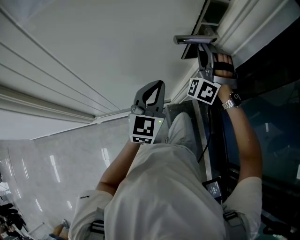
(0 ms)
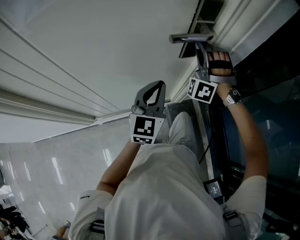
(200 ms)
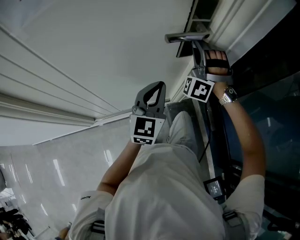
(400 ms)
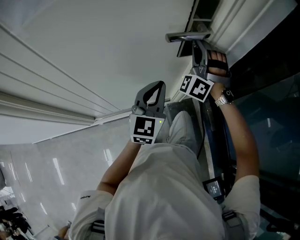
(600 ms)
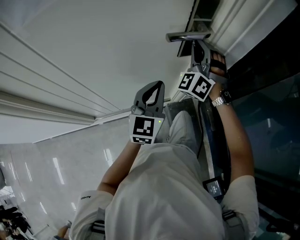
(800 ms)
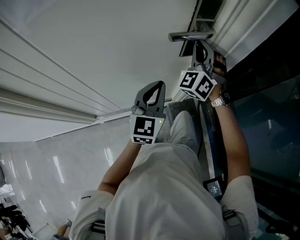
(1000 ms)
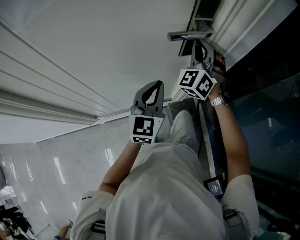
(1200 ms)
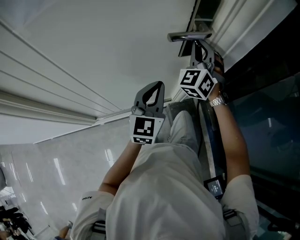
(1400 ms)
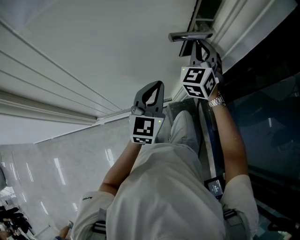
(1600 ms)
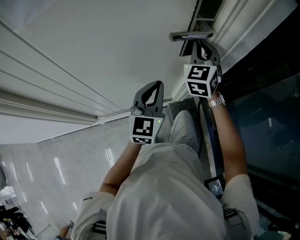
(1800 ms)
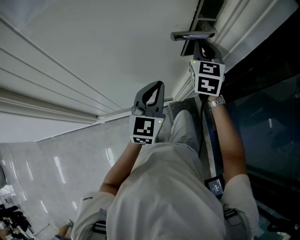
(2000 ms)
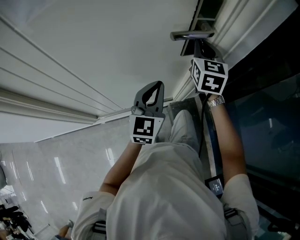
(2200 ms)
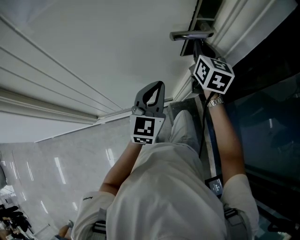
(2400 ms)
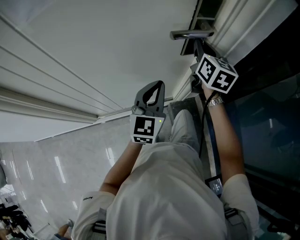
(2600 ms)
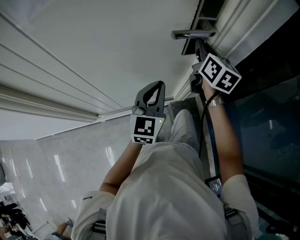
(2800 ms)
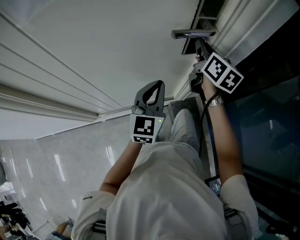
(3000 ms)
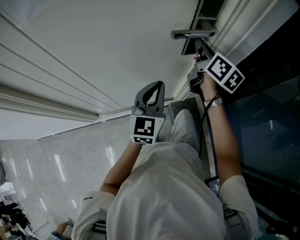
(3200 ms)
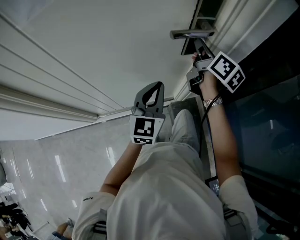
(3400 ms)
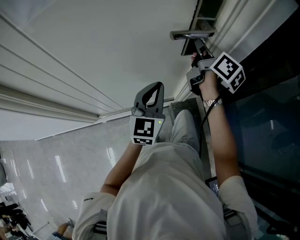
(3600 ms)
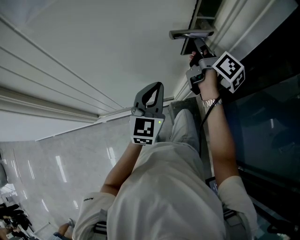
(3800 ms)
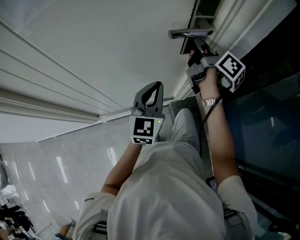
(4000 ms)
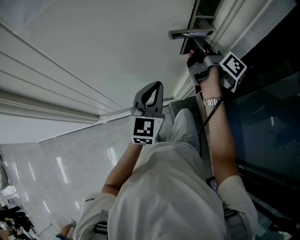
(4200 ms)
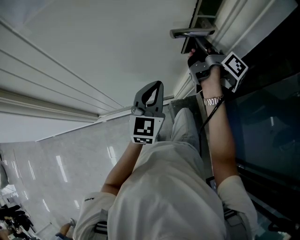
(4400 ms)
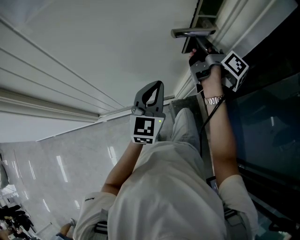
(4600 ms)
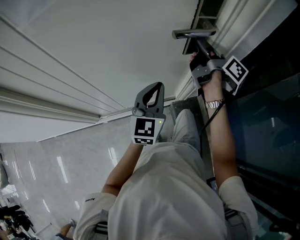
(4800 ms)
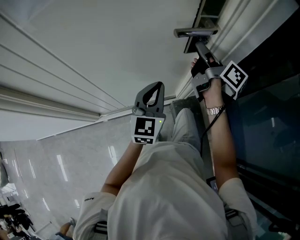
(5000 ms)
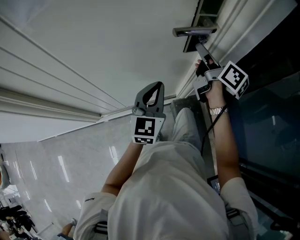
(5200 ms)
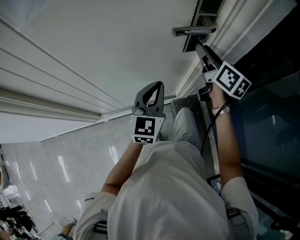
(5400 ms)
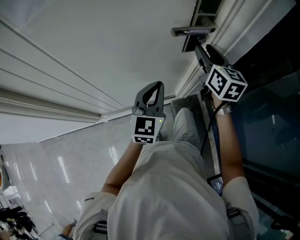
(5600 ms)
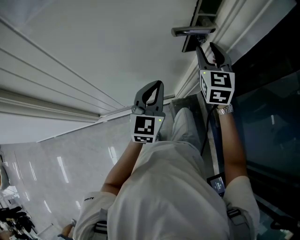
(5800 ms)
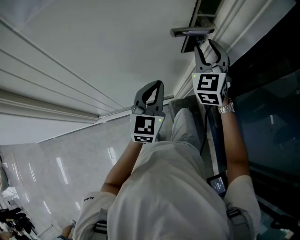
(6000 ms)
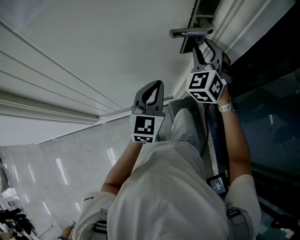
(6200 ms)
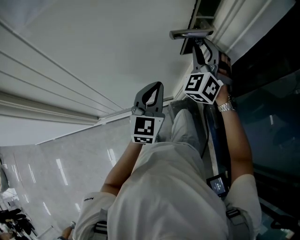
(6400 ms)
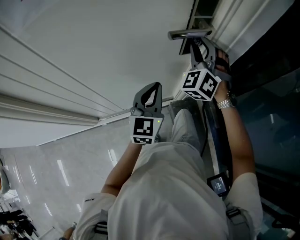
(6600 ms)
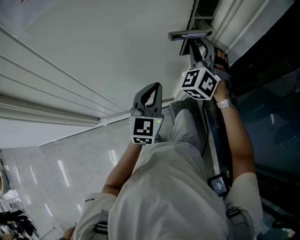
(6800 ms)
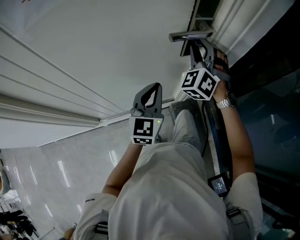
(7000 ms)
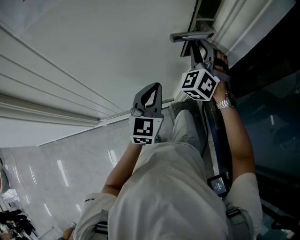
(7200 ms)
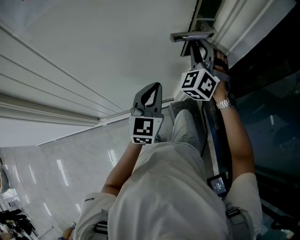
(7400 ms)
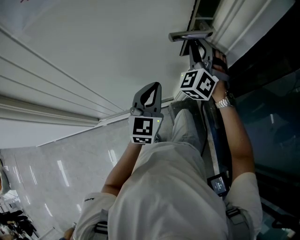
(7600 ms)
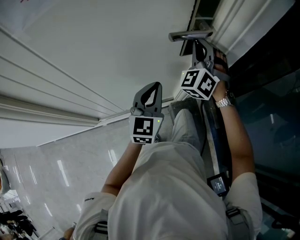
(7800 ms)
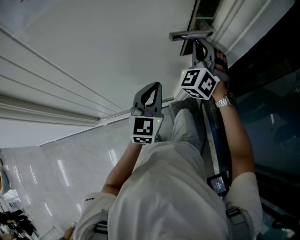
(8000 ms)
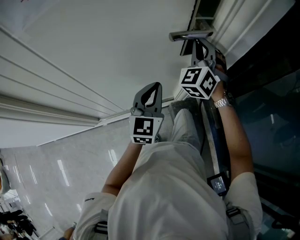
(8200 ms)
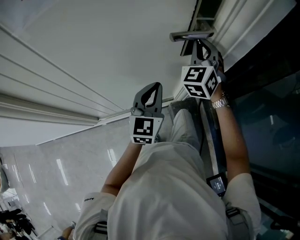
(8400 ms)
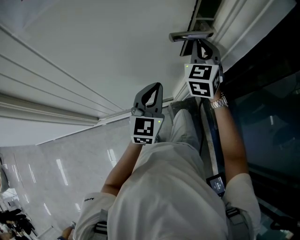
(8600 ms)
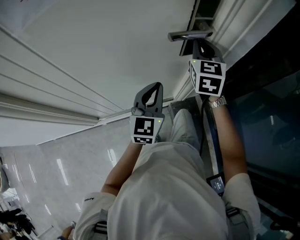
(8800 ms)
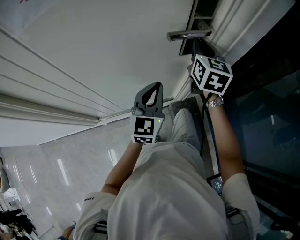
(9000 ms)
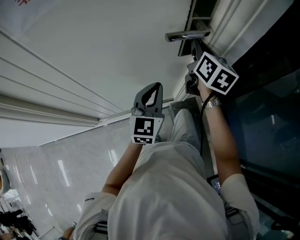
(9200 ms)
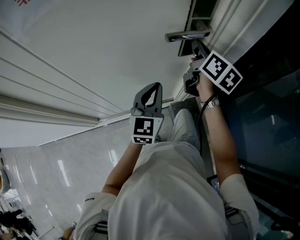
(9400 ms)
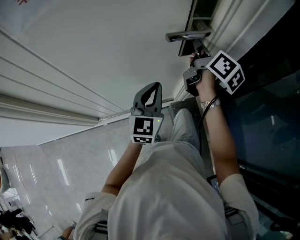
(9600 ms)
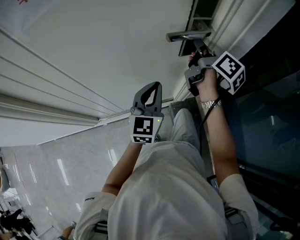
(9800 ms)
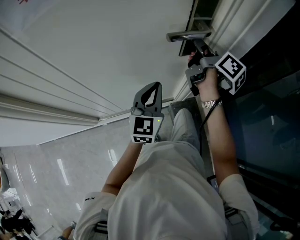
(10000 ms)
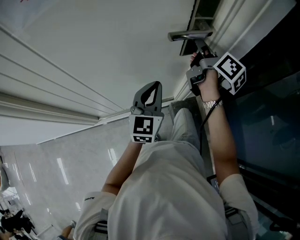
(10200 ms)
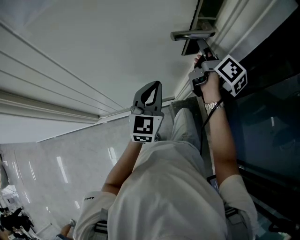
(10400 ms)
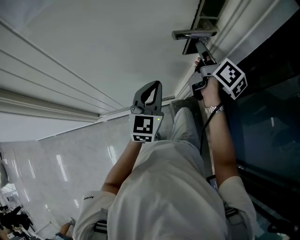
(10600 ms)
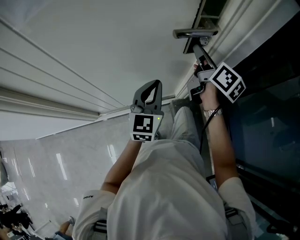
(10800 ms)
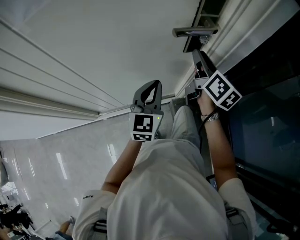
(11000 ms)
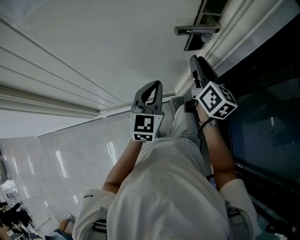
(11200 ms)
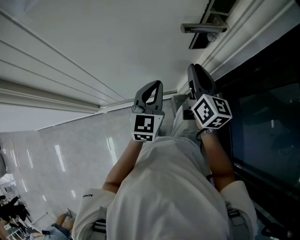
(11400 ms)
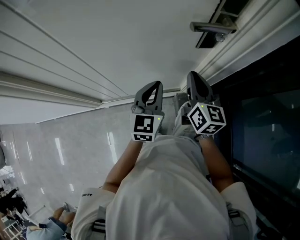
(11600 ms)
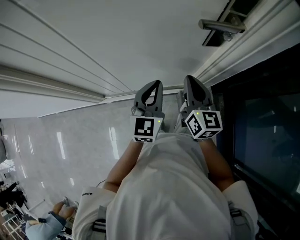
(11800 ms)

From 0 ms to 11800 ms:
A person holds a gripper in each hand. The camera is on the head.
From 0 ms to 1400 ms: The right gripper rotates about 40 degrees.
From 1400 ms to 3000 ms: The right gripper twists approximately 80 degrees clockwise, seen from behind.
From 3000 ms to 4400 ms: The right gripper rolls clockwise, seen from behind, by roughly 50 degrees.
From 4400 ms to 6000 ms: The right gripper rolls counterclockwise, seen from behind, by some 110 degrees, and opens its fingers.
From 6000 ms to 7400 ms: The right gripper changes its angle by some 30 degrees.
From 7400 ms to 8800 ms: The right gripper twists about 50 degrees clockwise, seen from behind, and closes up.
From 8800 ms to 10400 ms: The right gripper rolls clockwise, seen from behind, by roughly 70 degrees, and opens its fingers.
From 10400 ms to 11800 ms: The left gripper moves some 5 cm; the right gripper heads backward, to the left and downward, covering approximately 20 cm, rotates around the line of its fingers by approximately 40 degrees, counterclockwise from behind, and closes up.

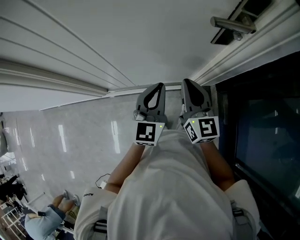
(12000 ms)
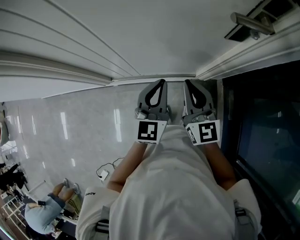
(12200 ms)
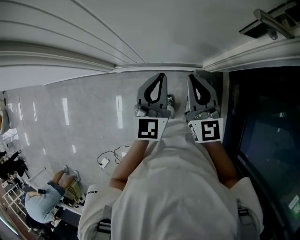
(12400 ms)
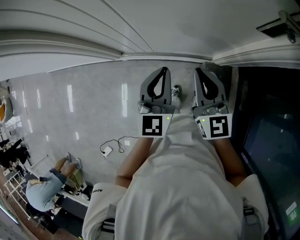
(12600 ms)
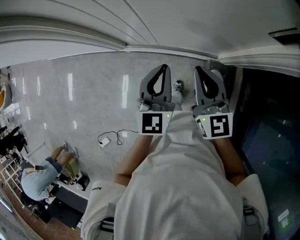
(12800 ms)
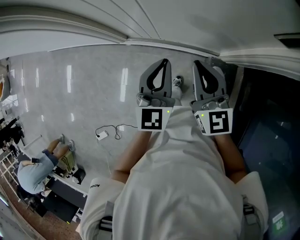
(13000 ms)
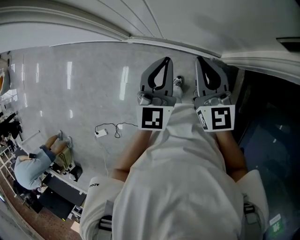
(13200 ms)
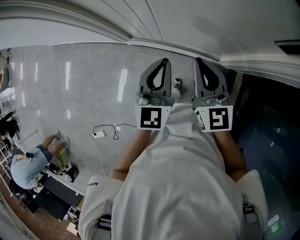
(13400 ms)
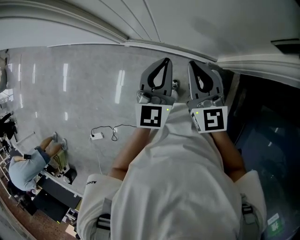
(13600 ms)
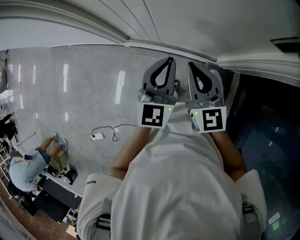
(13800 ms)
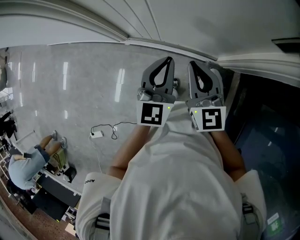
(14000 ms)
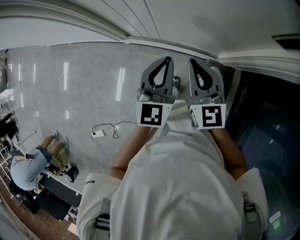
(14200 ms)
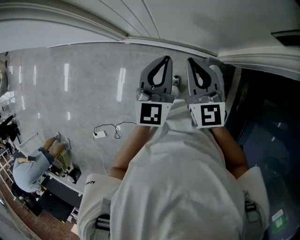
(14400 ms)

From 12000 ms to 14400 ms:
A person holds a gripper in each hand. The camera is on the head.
From 12000 ms to 13200 ms: Both grippers travel together to the left, roughly 10 cm. The right gripper swivels approximately 20 degrees; the left gripper changes its angle by approximately 20 degrees.
From 13200 ms to 14400 ms: The grippers make only small movements.

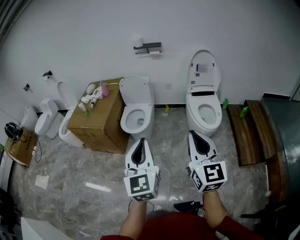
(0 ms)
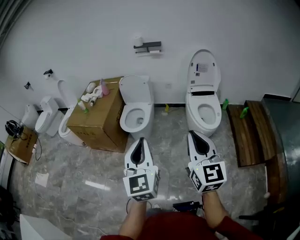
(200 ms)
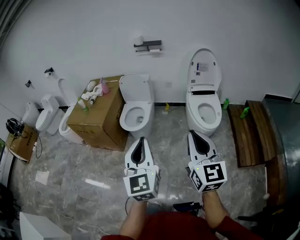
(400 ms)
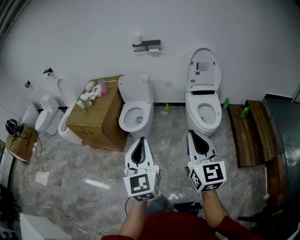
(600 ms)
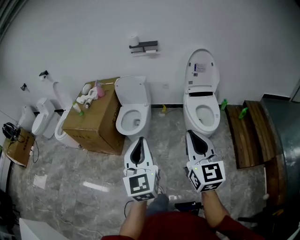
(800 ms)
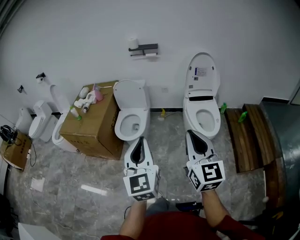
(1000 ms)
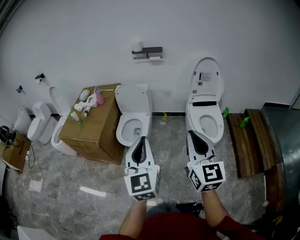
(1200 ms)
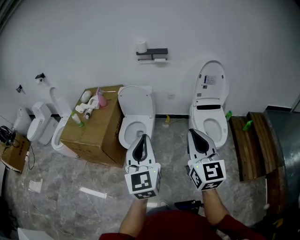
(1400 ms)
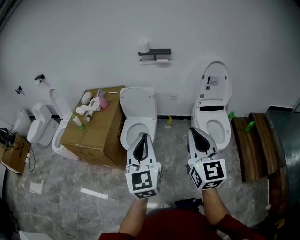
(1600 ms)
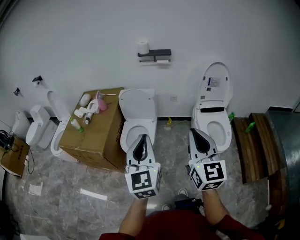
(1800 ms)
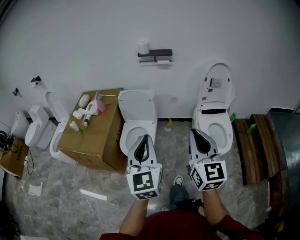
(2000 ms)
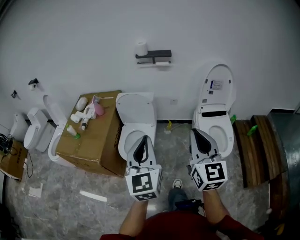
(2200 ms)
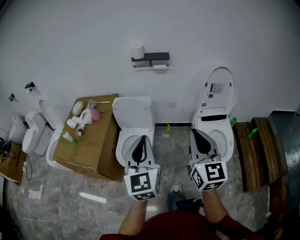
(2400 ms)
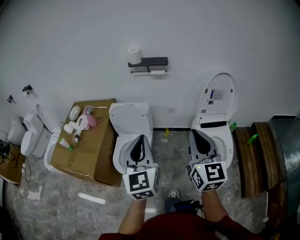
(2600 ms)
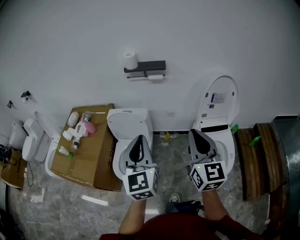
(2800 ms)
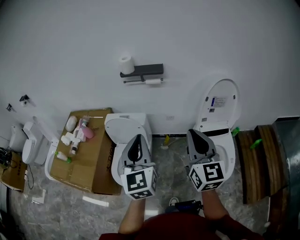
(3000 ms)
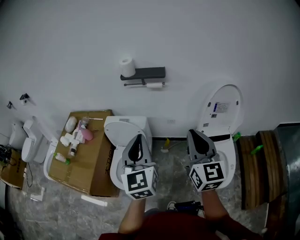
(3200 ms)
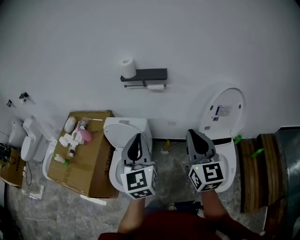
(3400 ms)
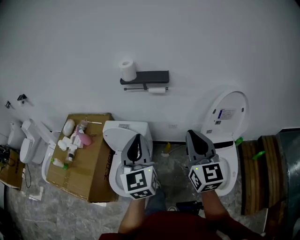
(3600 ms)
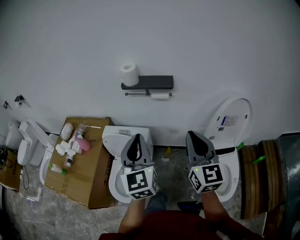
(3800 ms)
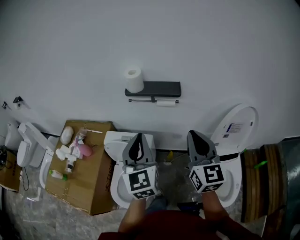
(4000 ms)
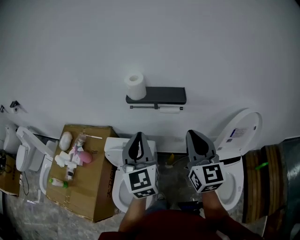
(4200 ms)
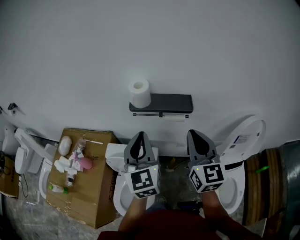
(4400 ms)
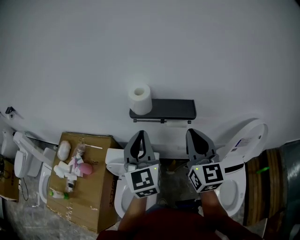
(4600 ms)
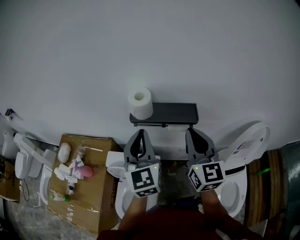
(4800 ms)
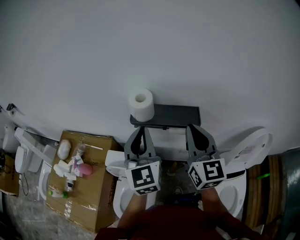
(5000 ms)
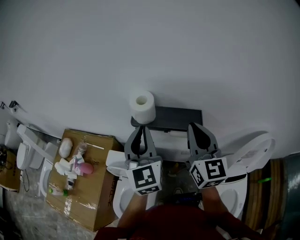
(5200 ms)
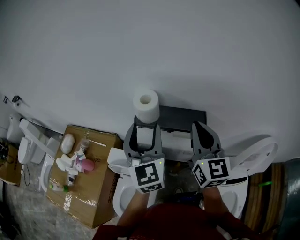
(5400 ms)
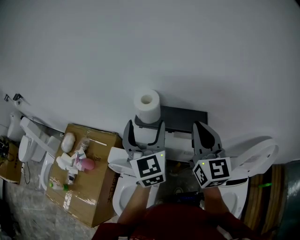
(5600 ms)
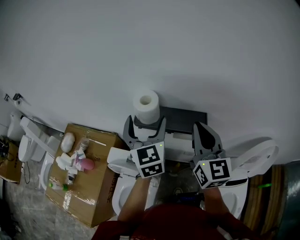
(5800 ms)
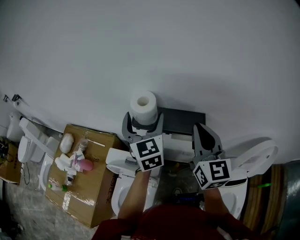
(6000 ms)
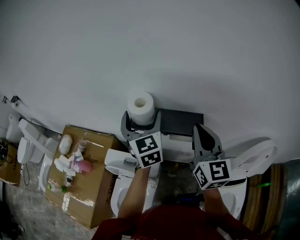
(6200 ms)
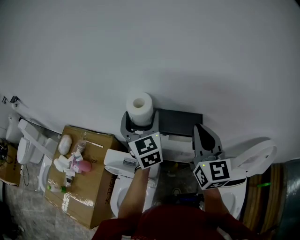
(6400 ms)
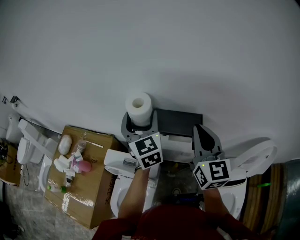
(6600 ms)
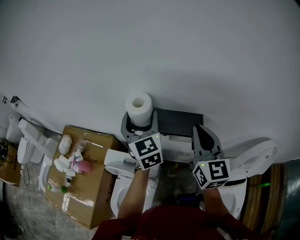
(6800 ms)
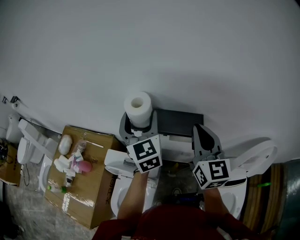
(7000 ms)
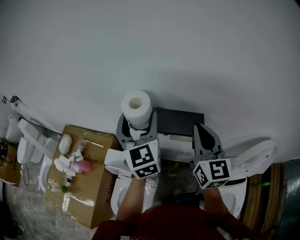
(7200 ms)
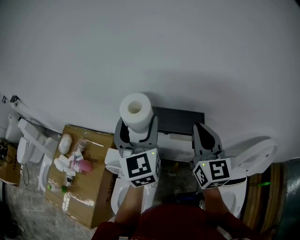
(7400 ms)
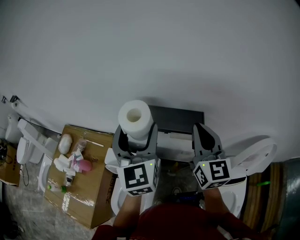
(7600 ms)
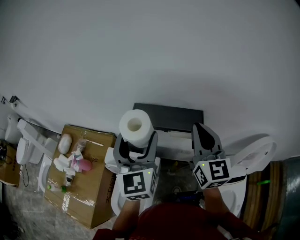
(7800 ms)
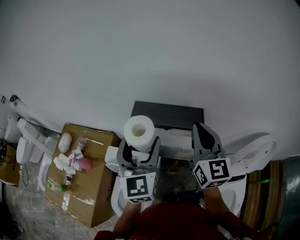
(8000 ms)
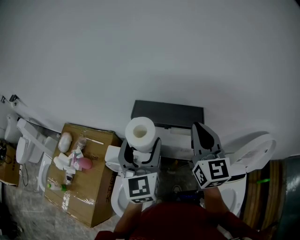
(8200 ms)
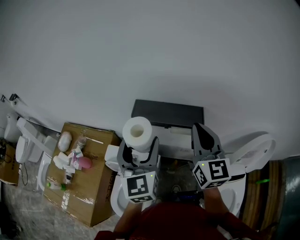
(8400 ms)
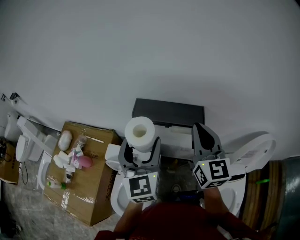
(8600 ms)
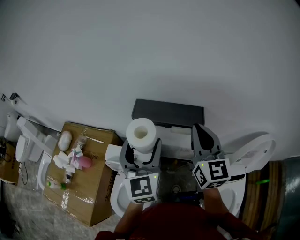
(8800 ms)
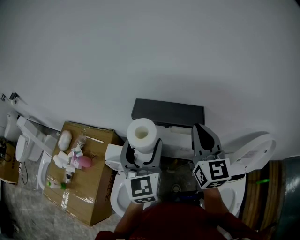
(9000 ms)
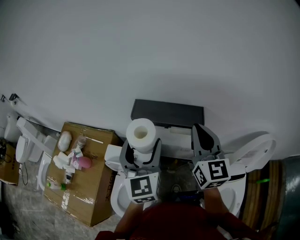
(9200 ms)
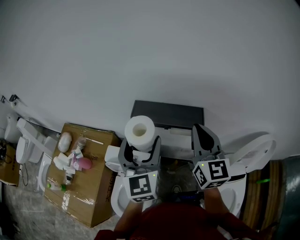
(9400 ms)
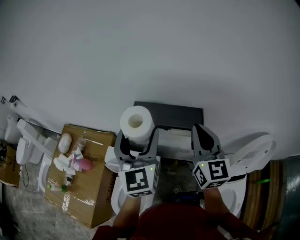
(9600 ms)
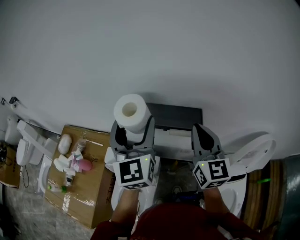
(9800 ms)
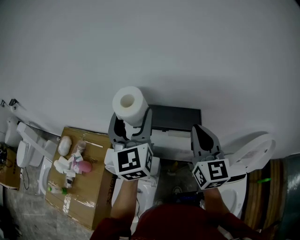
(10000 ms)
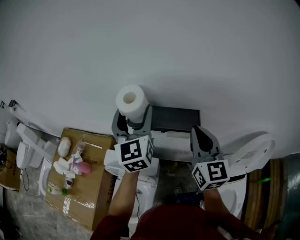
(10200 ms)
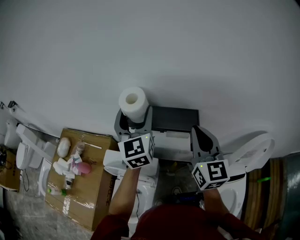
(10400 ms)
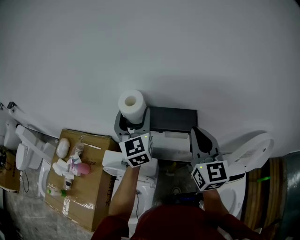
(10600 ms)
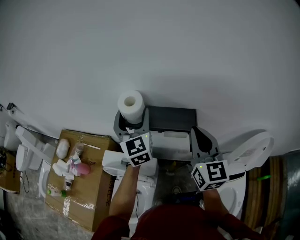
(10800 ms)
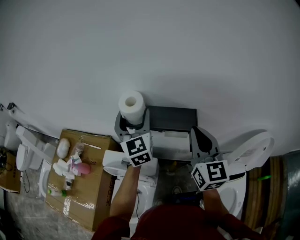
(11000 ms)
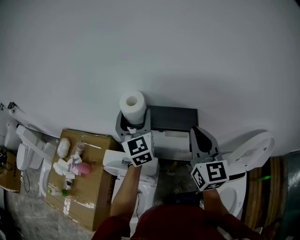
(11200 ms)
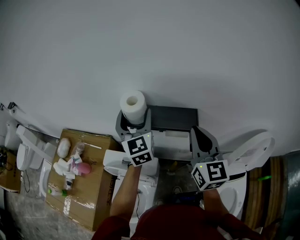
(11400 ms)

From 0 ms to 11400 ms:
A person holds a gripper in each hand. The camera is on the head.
From 0 ms to 1400 ms: Both grippers travel together forward, some 25 cm.
From 1400 ms to 2800 ms: The grippers both shift forward by roughly 35 cm.
From 2800 ms to 4200 ms: Both grippers travel together forward, roughly 35 cm.
From 4200 ms to 5600 ms: Both grippers move forward, some 20 cm. The left gripper opens its fingers.
From 7200 ms to 8600 ms: The left gripper moves backward, roughly 10 cm.
From 8600 ms to 10000 ms: The left gripper moves forward and upward, about 10 cm.
From 10000 ms to 11400 ms: The left gripper moves downward and forward, roughly 10 cm.
